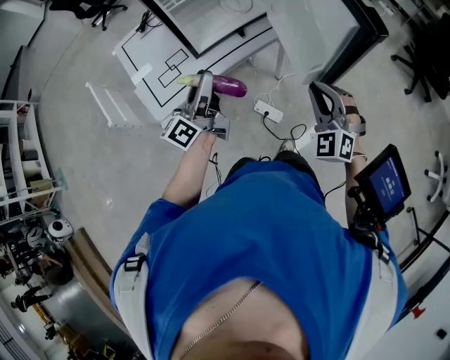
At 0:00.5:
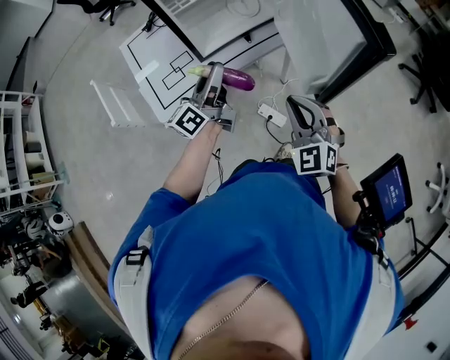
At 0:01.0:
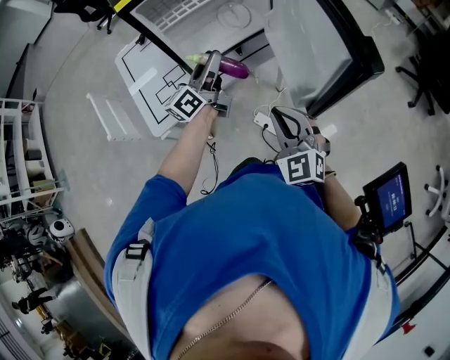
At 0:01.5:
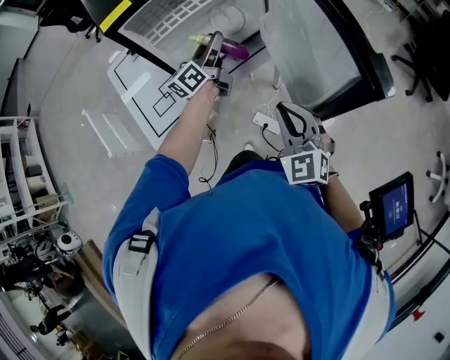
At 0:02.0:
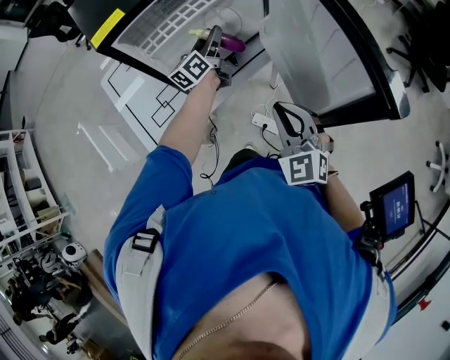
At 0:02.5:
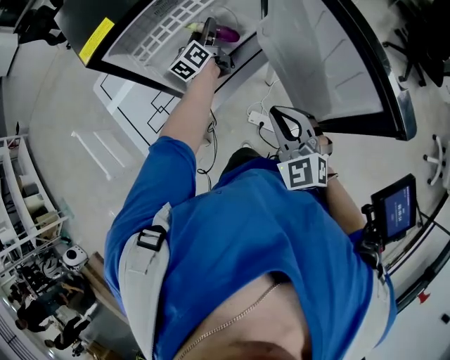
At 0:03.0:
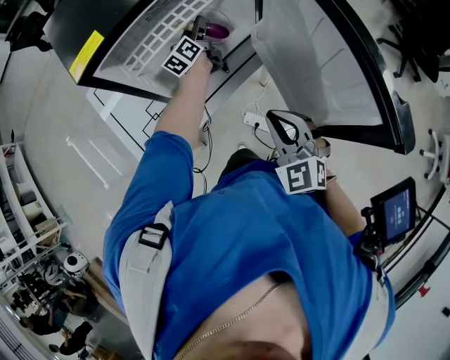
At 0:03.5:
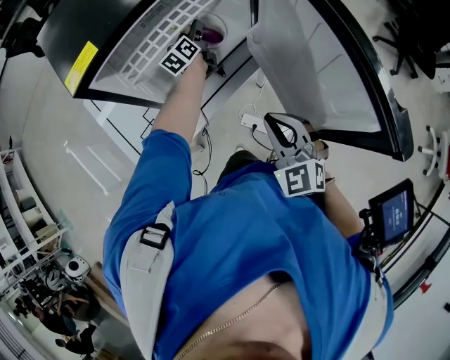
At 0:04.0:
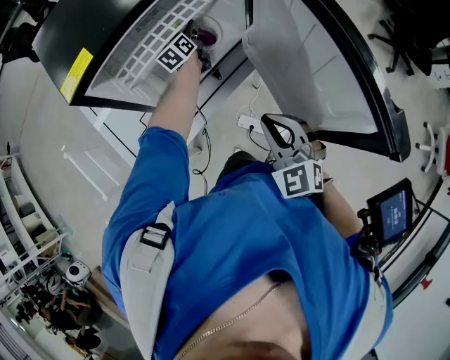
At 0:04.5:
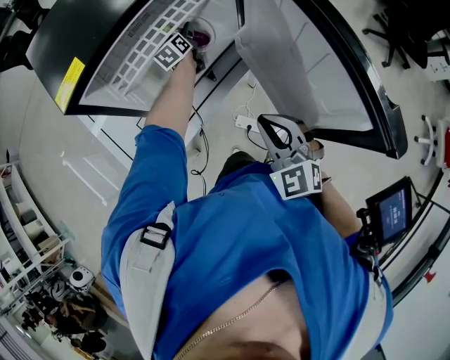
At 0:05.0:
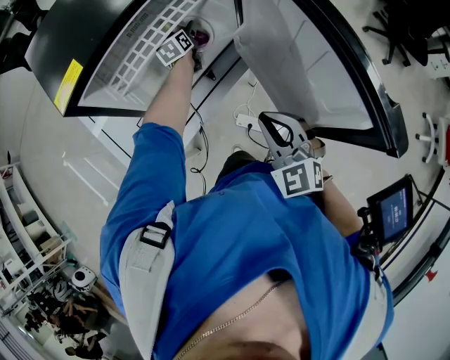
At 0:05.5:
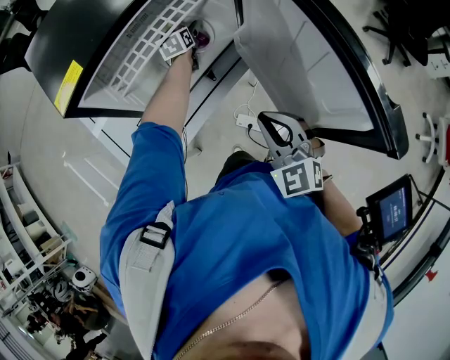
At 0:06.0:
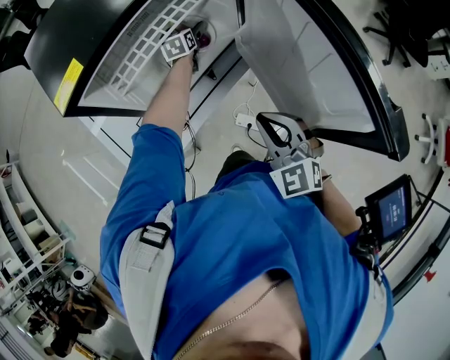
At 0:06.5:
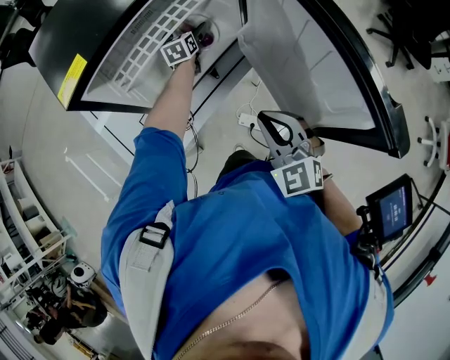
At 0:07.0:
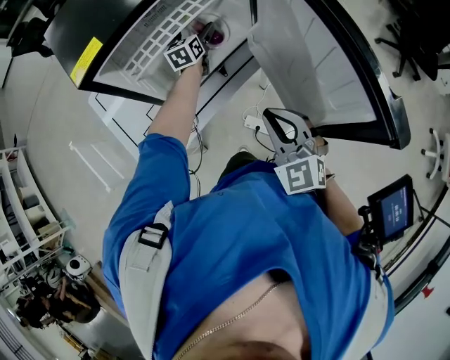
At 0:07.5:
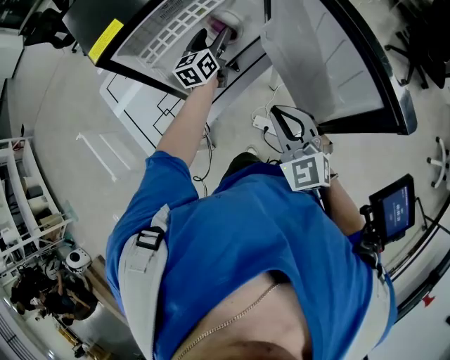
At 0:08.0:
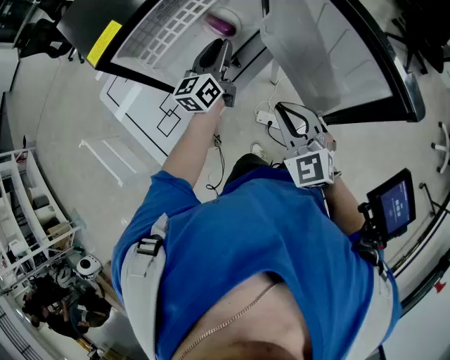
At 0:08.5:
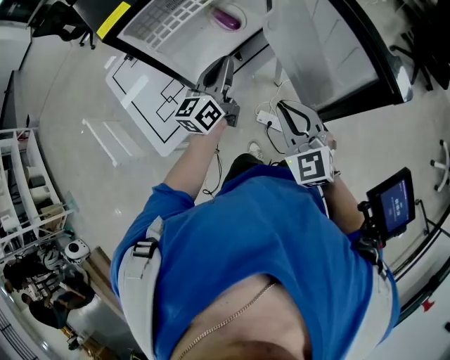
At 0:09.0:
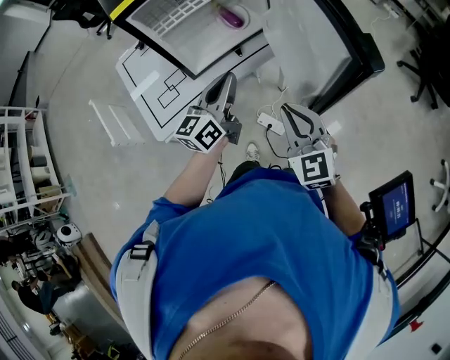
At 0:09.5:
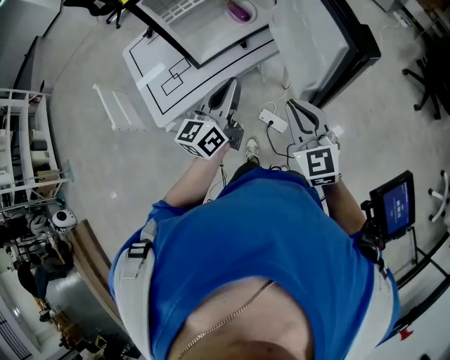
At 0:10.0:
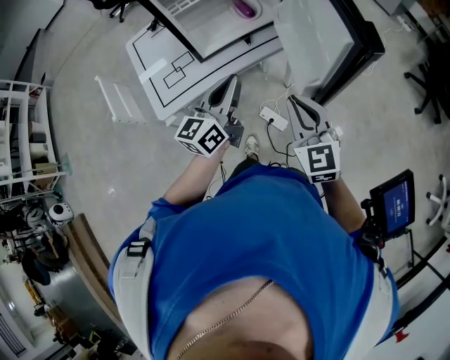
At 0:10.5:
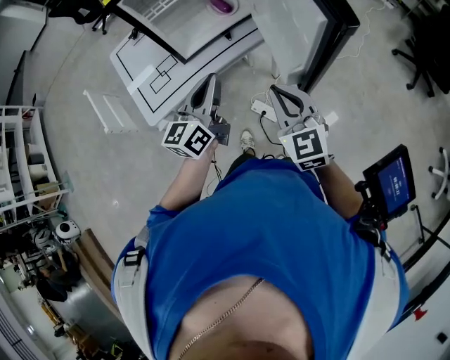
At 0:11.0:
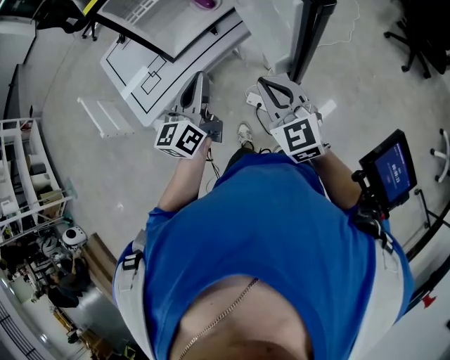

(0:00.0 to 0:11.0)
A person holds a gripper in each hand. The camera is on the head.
0:00.0 - 0:02.0: The left gripper heads forward, covering some 30 cm. The right gripper is displaced to the left and forward by about 10 cm, and turns by roughly 20 degrees.
0:02.0 - 0:03.5: The left gripper is displaced forward and downward by about 10 cm.
0:03.5 - 0:05.5: The left gripper shifts by about 5 cm, swivels some 30 degrees, and opens up.
0:05.5 - 0:07.5: The left gripper moves backward and upward, roughly 15 cm, and turns by approximately 20 degrees.
0:07.5 - 0:09.0: The right gripper moves backward and to the right, some 10 cm. Meanwhile the left gripper moves backward, some 25 cm, and closes.
0:09.0 - 0:11.0: The left gripper travels backward by roughly 5 cm.

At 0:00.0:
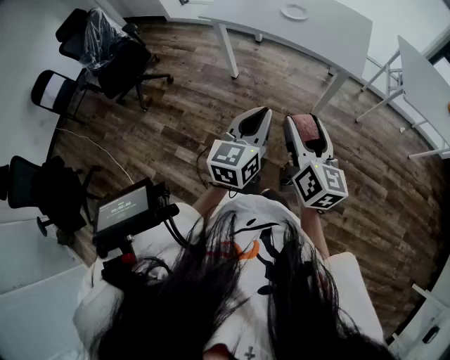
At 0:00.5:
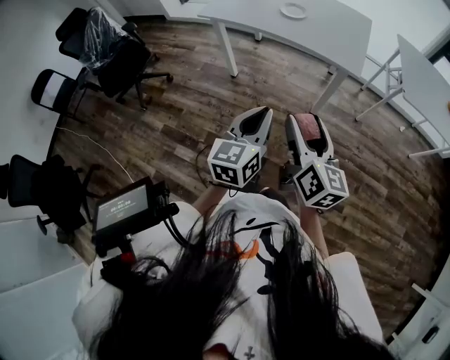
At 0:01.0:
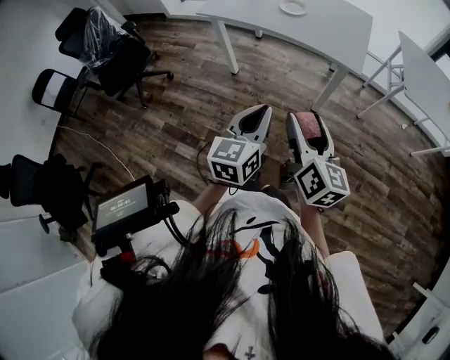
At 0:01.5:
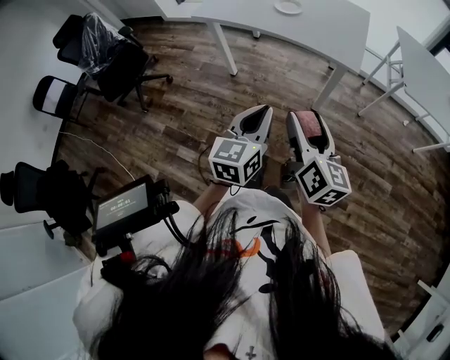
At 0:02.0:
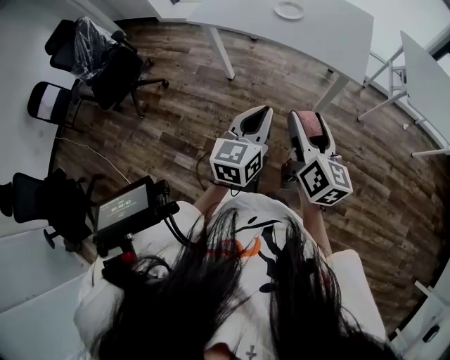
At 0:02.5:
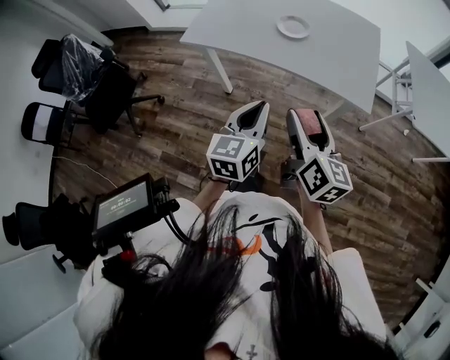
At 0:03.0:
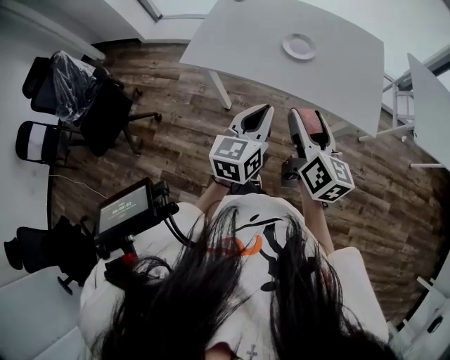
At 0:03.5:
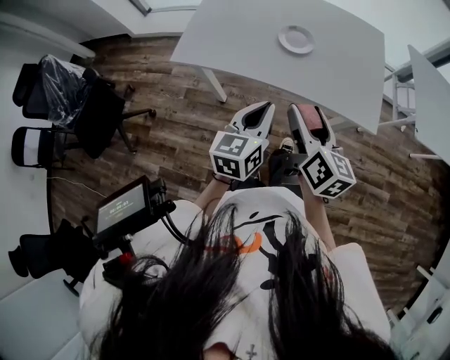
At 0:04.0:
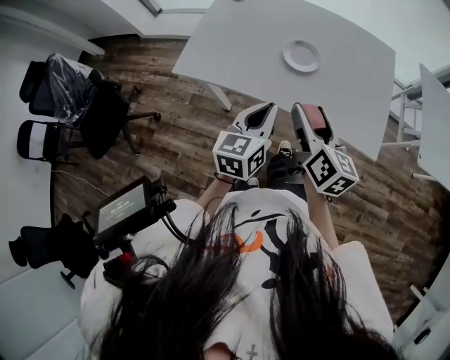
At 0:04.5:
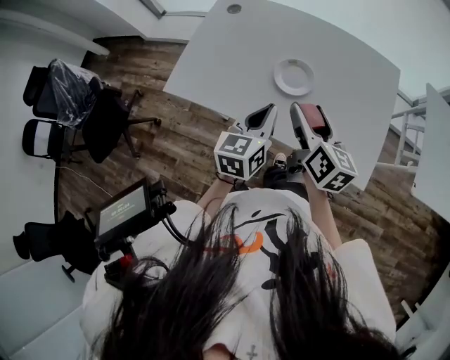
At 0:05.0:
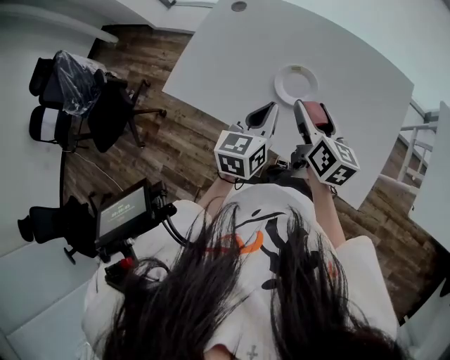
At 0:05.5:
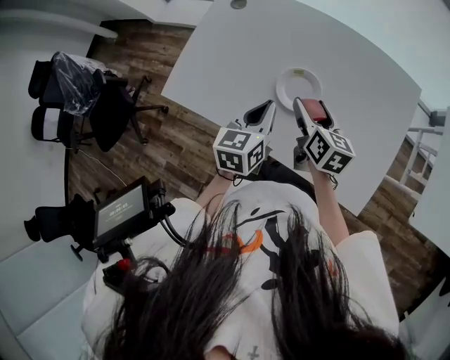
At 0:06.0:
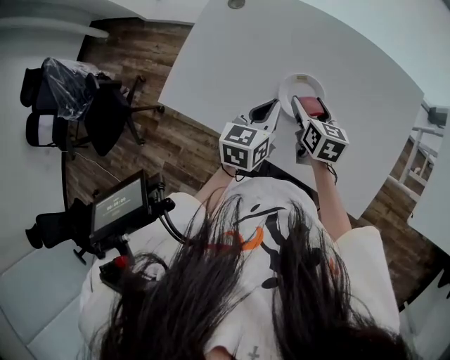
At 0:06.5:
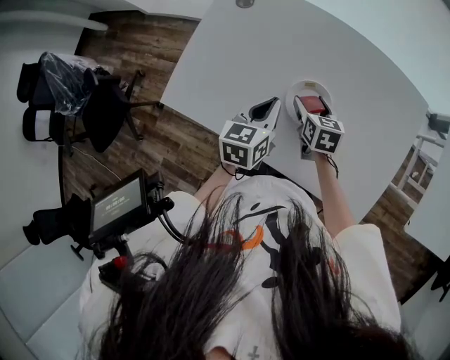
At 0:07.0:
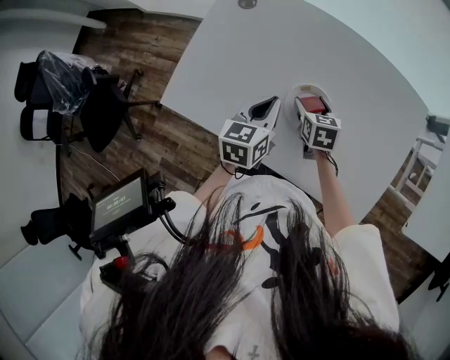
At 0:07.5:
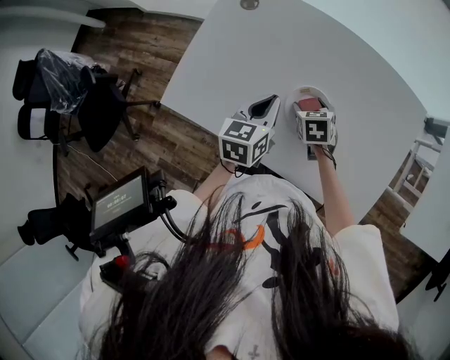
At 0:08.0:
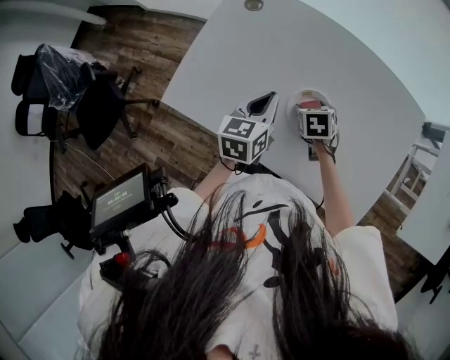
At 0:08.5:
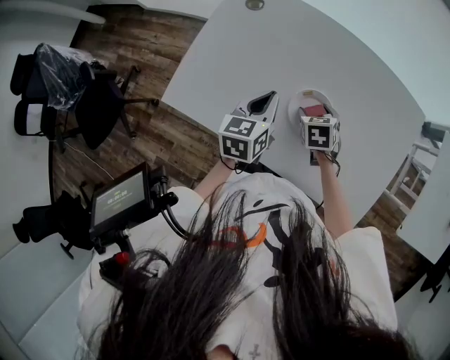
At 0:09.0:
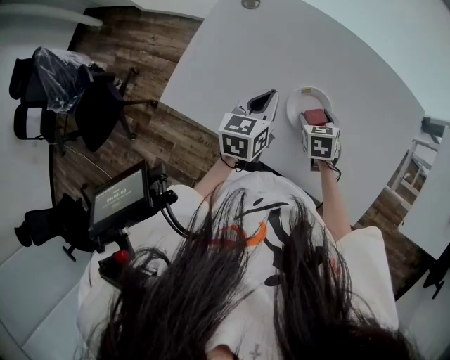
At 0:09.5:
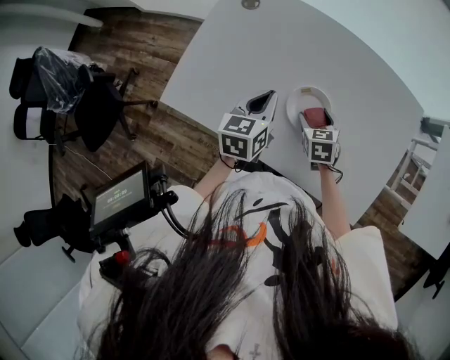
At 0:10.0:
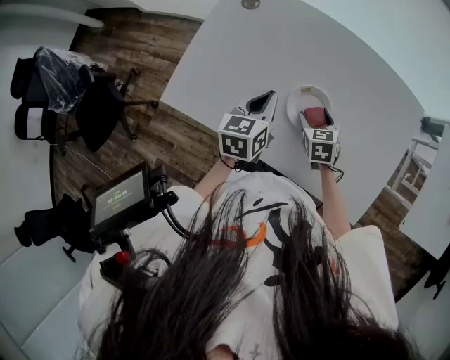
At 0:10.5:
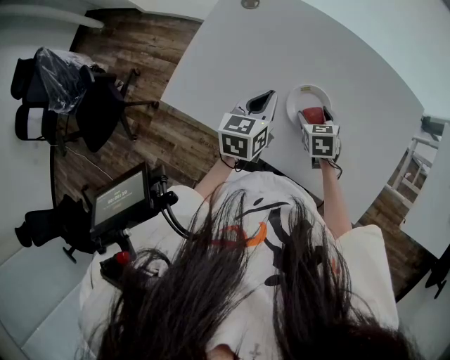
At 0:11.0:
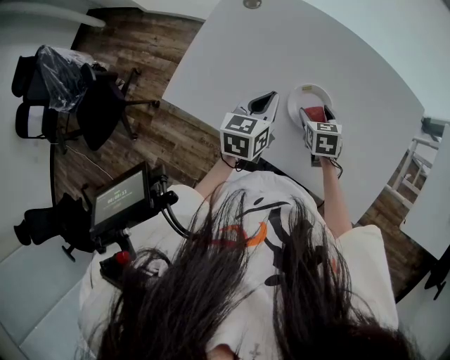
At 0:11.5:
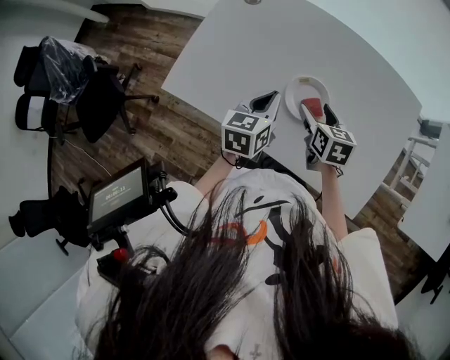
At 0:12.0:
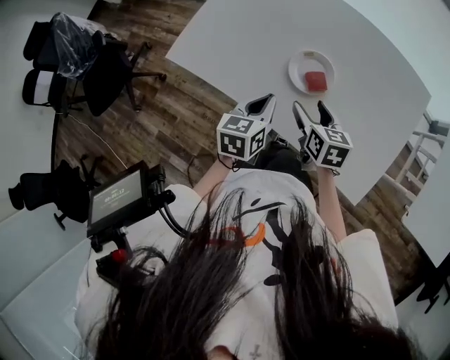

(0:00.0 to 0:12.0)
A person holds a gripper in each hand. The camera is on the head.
0:00.0 - 0:02.0: The two grippers go some 10 cm forward.
0:02.0 - 0:04.0: The grippers both shift forward by roughly 35 cm.
0:04.0 - 0:06.0: The right gripper shifts about 30 cm forward and downward, and swivels about 30 degrees. Meanwhile the left gripper moves forward, some 25 cm.
0:06.0 - 0:08.0: The left gripper heads to the left, covering approximately 5 cm. The right gripper goes about 5 cm downward, and turns by roughly 40 degrees.
0:08.0 - 0:10.0: The grippers move only a little.
0:10.0 - 0:12.0: The left gripper travels backward by some 15 cm. Meanwhile the right gripper heads backward and upward, covering about 15 cm, and turns by approximately 20 degrees.

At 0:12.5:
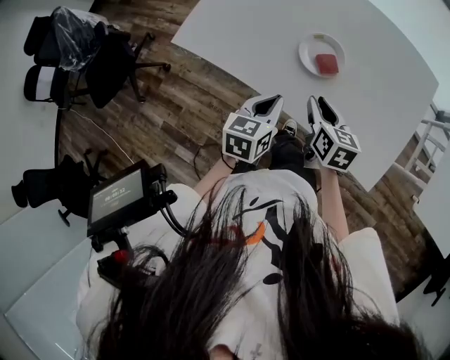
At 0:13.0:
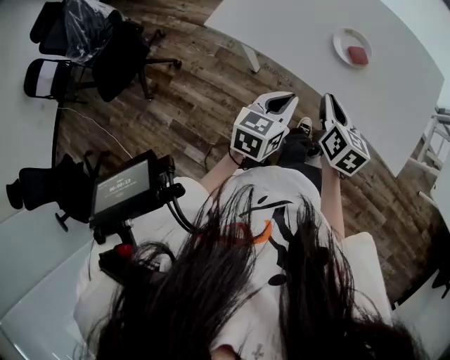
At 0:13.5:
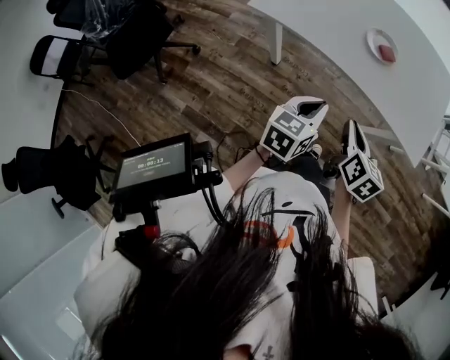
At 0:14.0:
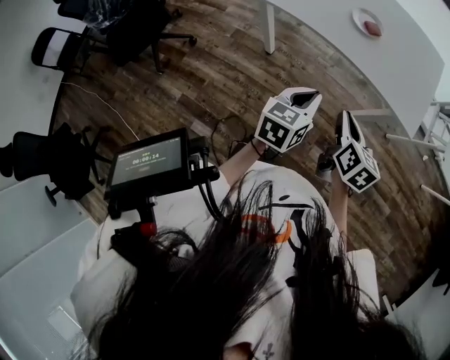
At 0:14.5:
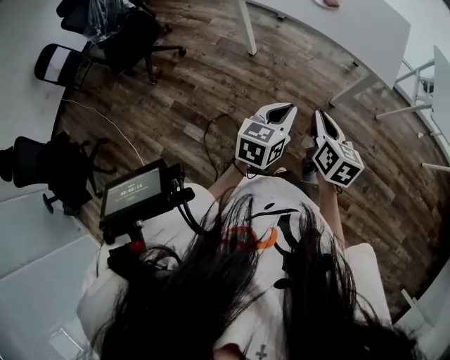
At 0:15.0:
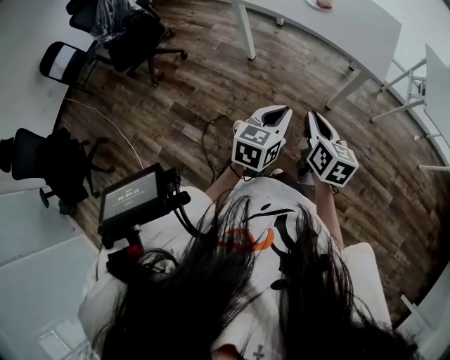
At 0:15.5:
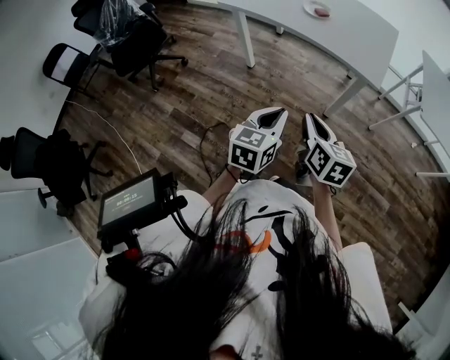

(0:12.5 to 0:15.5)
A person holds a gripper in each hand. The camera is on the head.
0:12.5 - 0:14.0: Both grippers move backward, approximately 30 cm.
0:14.0 - 0:15.5: The left gripper is displaced backward and to the right by approximately 25 cm; the right gripper is displaced backward by some 20 cm.

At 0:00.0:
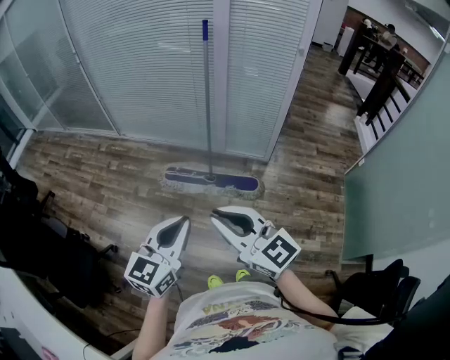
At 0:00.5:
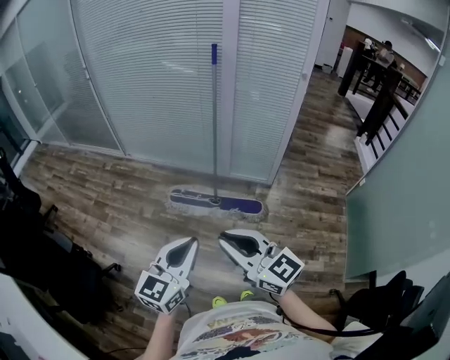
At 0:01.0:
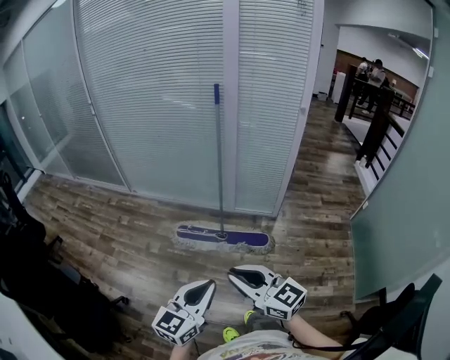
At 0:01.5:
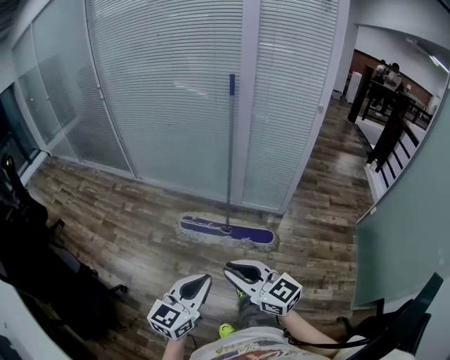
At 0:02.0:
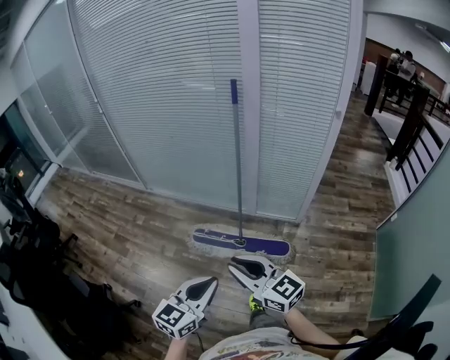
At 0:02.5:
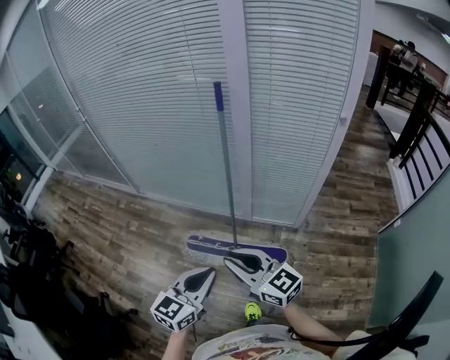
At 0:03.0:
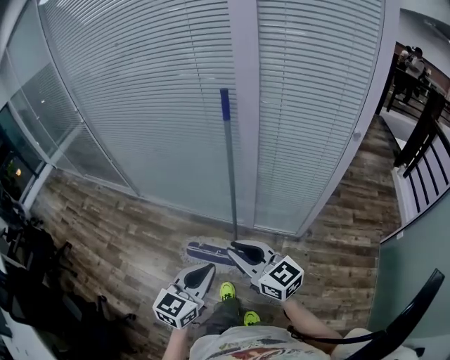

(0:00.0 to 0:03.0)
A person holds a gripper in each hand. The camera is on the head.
0:00.0 - 0:01.5: Both grippers travel together to the left, approximately 5 cm.
0:01.5 - 0:03.0: Both grippers are carried forward, some 50 cm.
